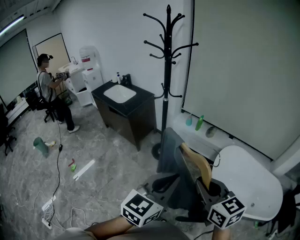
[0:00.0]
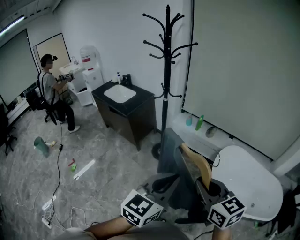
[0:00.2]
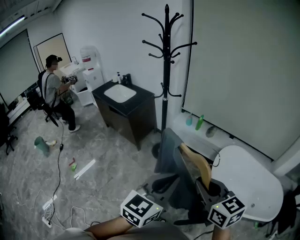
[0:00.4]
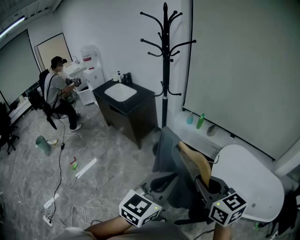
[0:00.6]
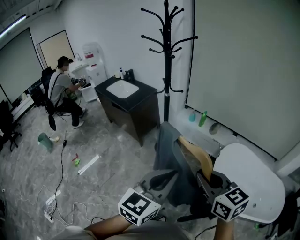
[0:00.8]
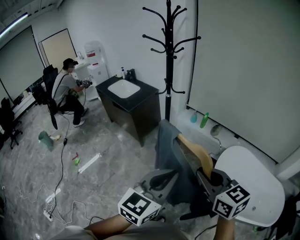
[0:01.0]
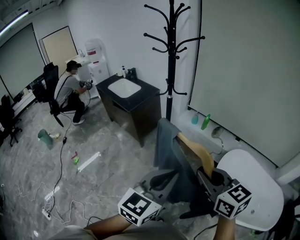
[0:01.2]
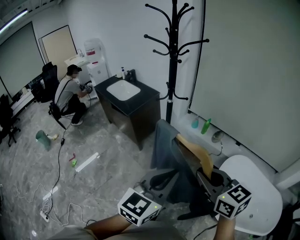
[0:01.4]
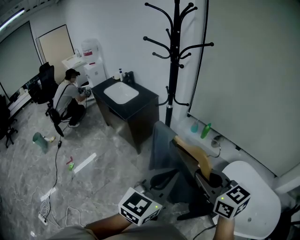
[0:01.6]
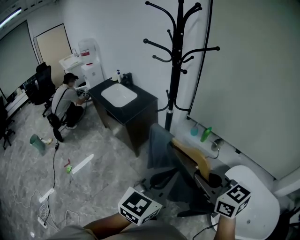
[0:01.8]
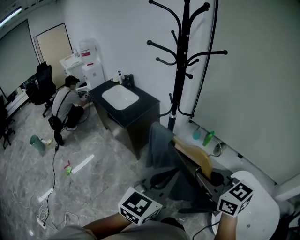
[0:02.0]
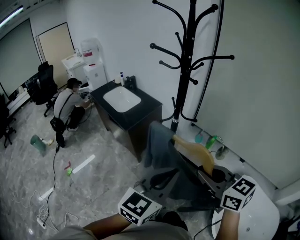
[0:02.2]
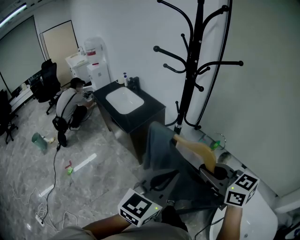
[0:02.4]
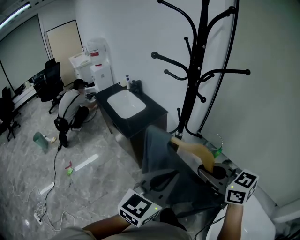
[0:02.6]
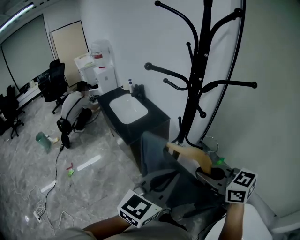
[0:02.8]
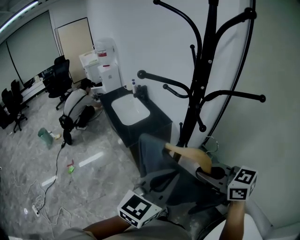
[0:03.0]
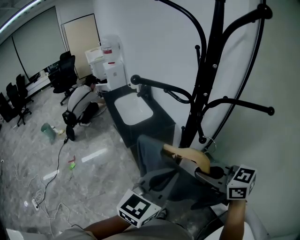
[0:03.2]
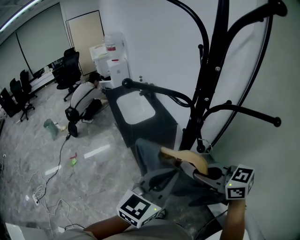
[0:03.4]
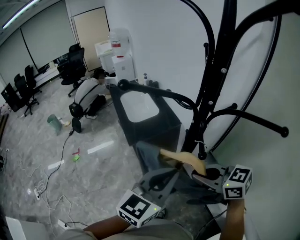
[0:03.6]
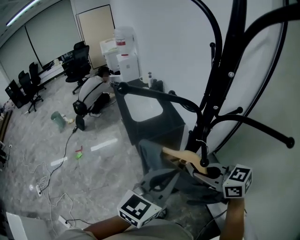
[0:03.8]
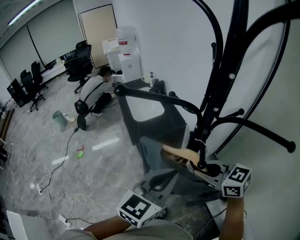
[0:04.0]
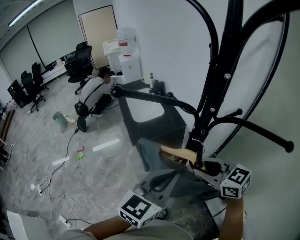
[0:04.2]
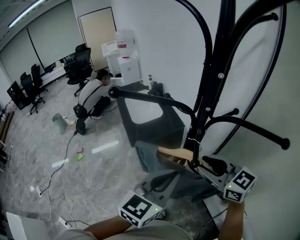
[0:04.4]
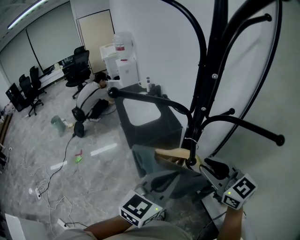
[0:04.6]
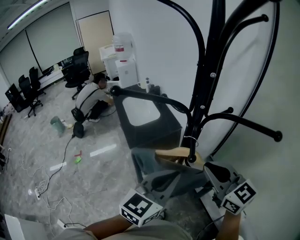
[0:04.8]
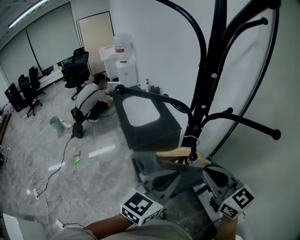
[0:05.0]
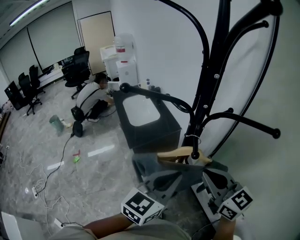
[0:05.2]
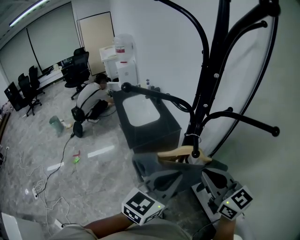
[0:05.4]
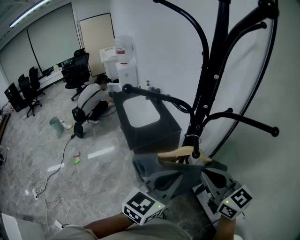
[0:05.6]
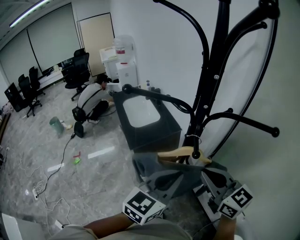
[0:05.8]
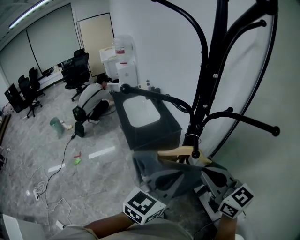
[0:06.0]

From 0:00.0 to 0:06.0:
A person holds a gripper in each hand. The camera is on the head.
From 0:00.0 to 0:01.6: Both grippers travel together forward, approximately 20 cm.
From 0:01.6 to 0:03.0: The two grippers go approximately 35 cm forward. The right gripper swivels roughly 30 degrees.
From 0:03.0 to 0:04.4: Both grippers move forward and to the right, approximately 15 cm.
From 0:04.4 to 0:06.0: The right gripper heads backward, covering approximately 5 cm, and closes its fingers.

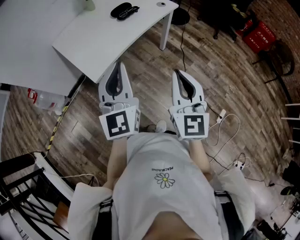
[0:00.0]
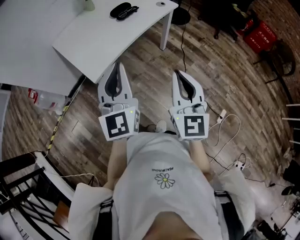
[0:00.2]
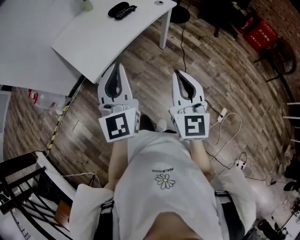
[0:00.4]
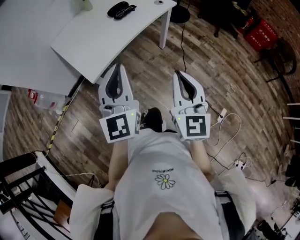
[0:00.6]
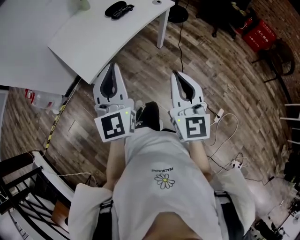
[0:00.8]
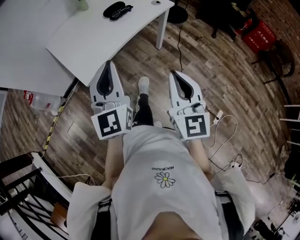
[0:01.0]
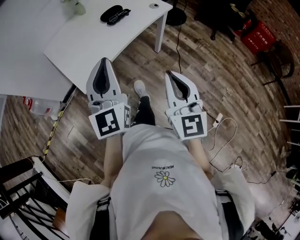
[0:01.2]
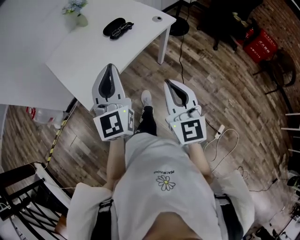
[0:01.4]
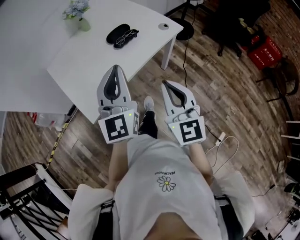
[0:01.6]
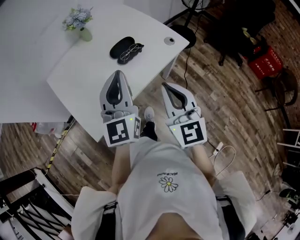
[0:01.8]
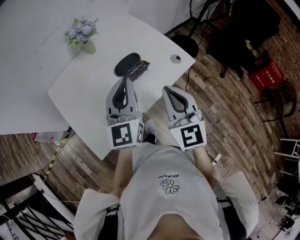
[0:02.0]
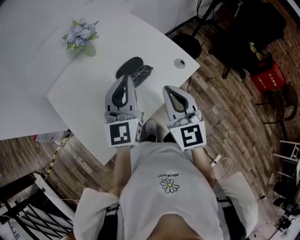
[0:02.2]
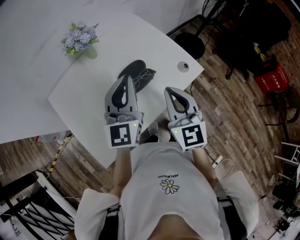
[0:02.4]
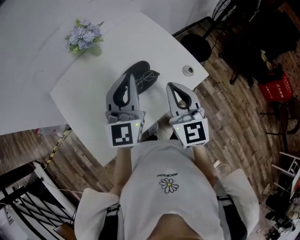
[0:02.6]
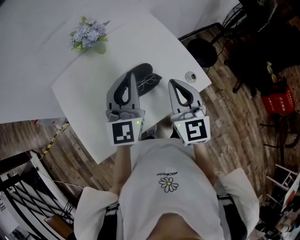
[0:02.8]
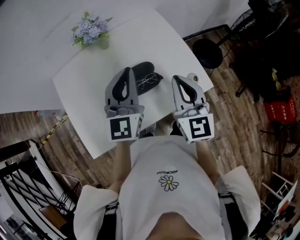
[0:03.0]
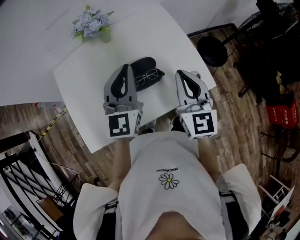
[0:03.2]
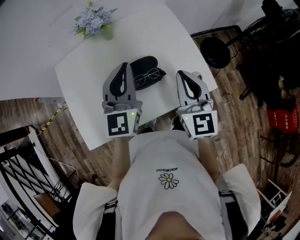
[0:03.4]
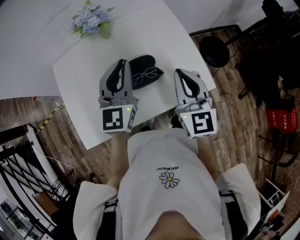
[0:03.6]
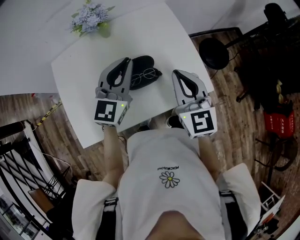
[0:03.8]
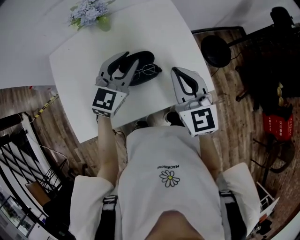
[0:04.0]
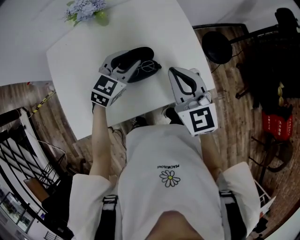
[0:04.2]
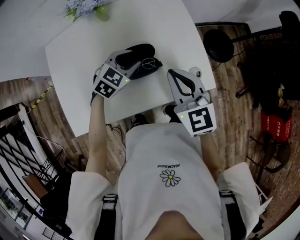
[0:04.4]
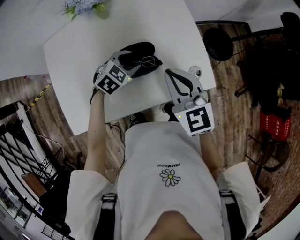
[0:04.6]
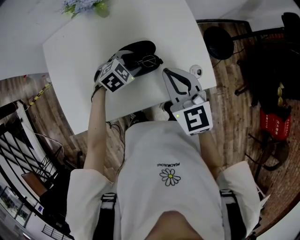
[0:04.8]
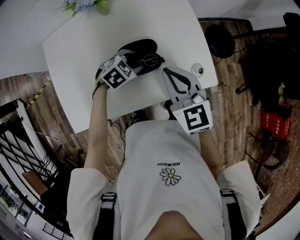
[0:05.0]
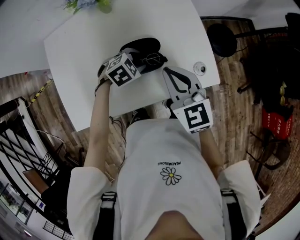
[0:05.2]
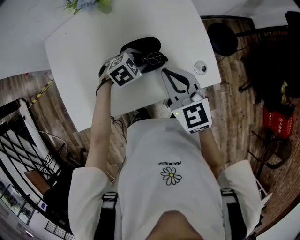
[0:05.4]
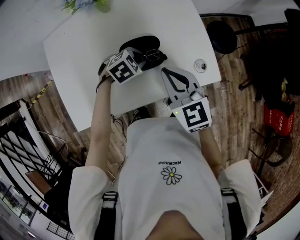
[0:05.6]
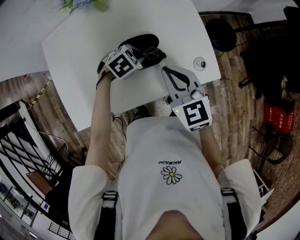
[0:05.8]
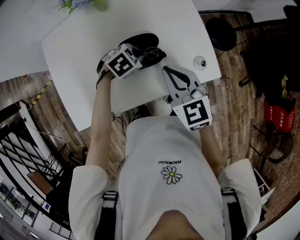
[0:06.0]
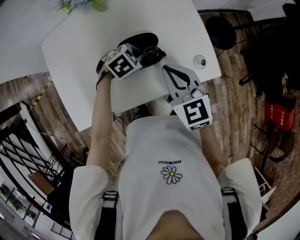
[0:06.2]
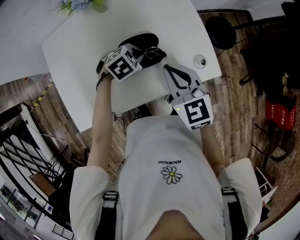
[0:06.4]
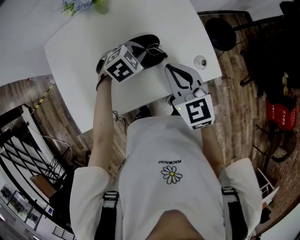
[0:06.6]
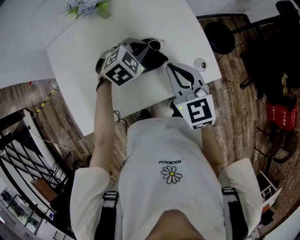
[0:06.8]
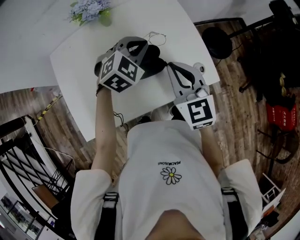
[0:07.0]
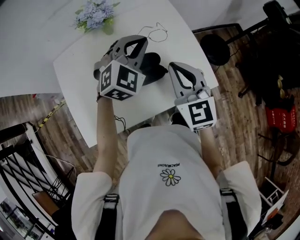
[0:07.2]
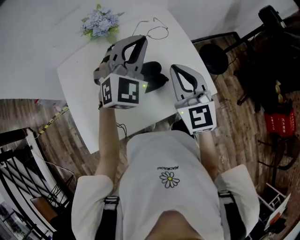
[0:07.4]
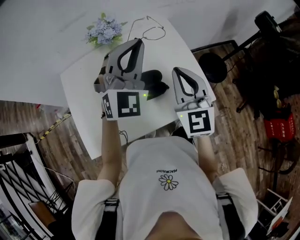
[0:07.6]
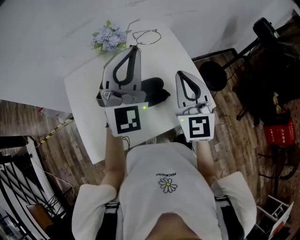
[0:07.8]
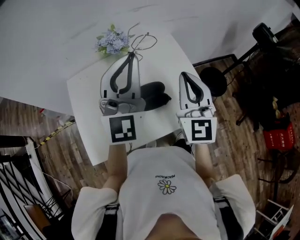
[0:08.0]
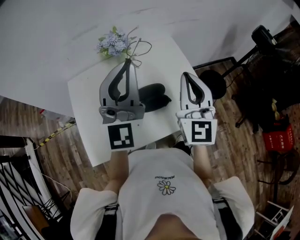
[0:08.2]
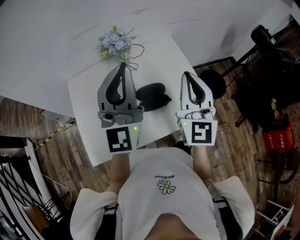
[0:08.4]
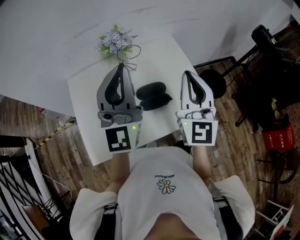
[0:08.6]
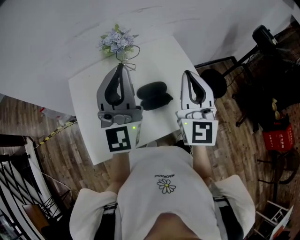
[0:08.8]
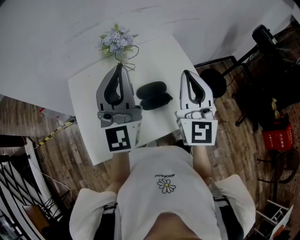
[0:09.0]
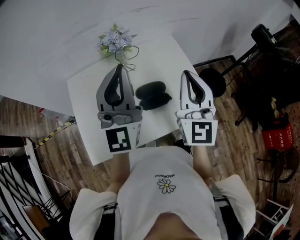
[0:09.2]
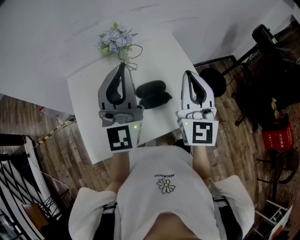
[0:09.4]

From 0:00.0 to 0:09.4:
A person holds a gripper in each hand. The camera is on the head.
From 0:00.0 to 0:01.6: Both grippers move forward, some 20 cm.
From 0:01.6 to 0:03.2: The two grippers go roughly 35 cm forward.
From 0:03.2 to 0:04.8: The left gripper travels downward by roughly 25 cm, tips its fingers downward by some 60 degrees, and opens its fingers; the right gripper travels downward by approximately 5 cm, and changes its angle by about 30 degrees.
From 0:04.8 to 0:06.2: The left gripper closes up.
From 0:06.2 to 0:07.8: The left gripper goes approximately 40 cm upward, and tips its fingers upward by about 70 degrees; the right gripper is displaced upward by some 15 cm, and changes its angle by about 40 degrees.
From 0:07.8 to 0:09.4: The left gripper heads to the left and backward, covering roughly 10 cm, and turns by about 30 degrees.

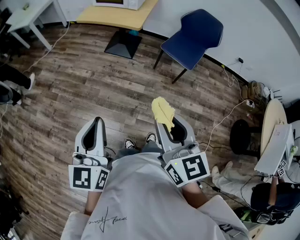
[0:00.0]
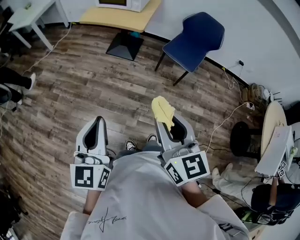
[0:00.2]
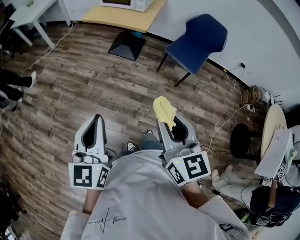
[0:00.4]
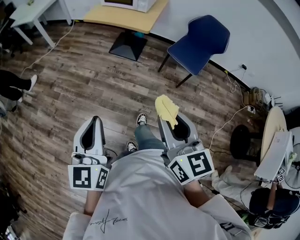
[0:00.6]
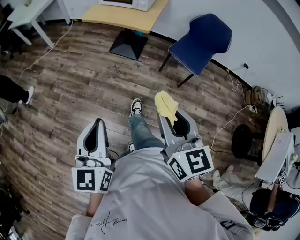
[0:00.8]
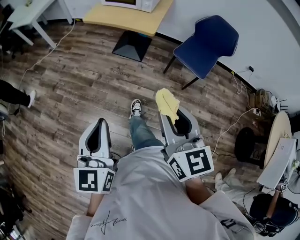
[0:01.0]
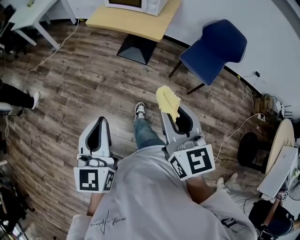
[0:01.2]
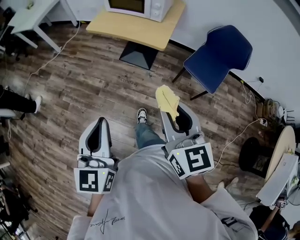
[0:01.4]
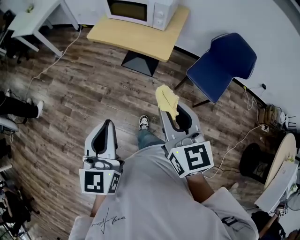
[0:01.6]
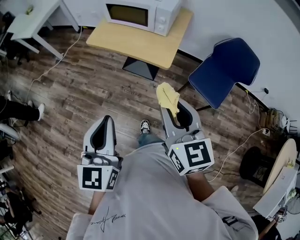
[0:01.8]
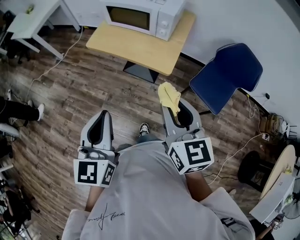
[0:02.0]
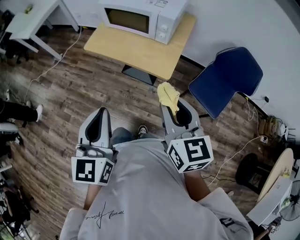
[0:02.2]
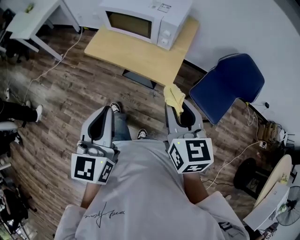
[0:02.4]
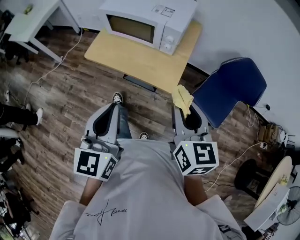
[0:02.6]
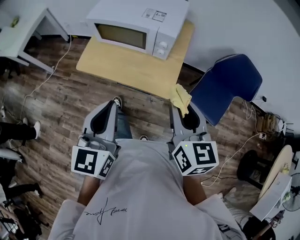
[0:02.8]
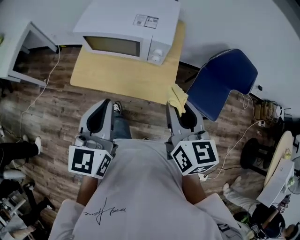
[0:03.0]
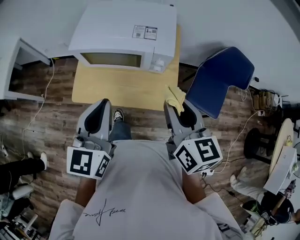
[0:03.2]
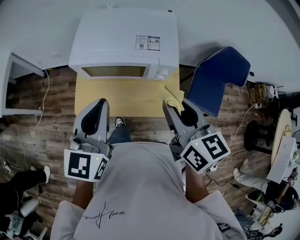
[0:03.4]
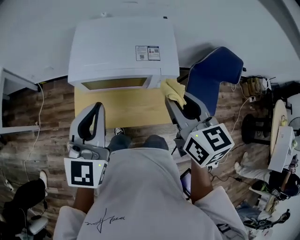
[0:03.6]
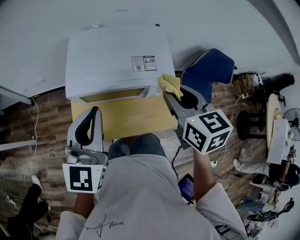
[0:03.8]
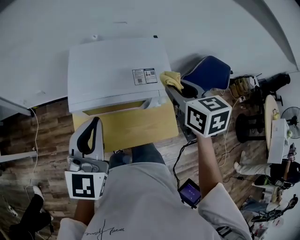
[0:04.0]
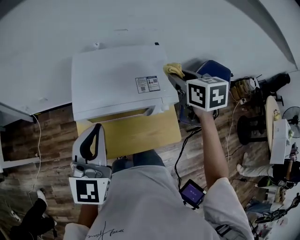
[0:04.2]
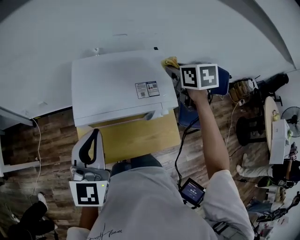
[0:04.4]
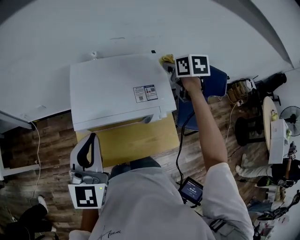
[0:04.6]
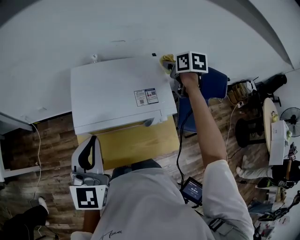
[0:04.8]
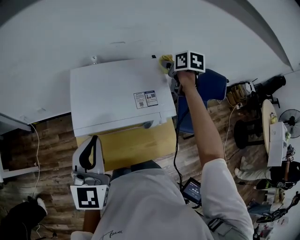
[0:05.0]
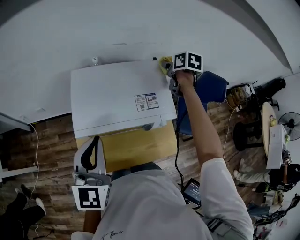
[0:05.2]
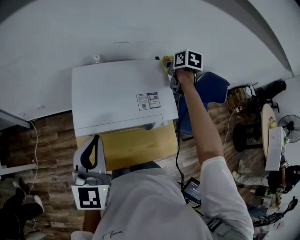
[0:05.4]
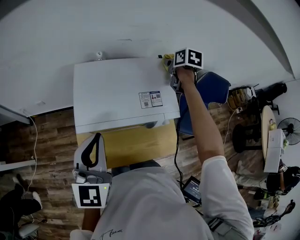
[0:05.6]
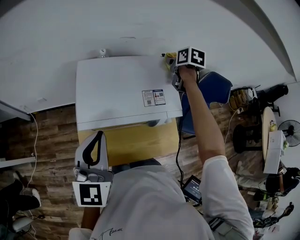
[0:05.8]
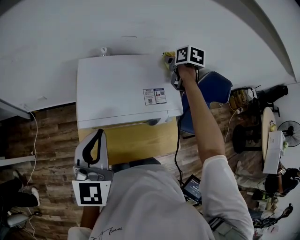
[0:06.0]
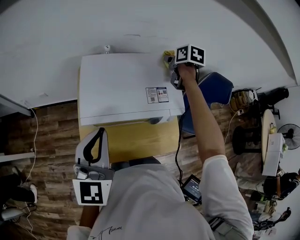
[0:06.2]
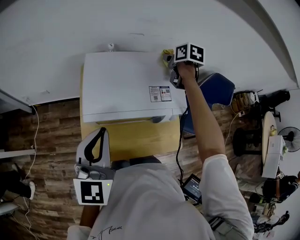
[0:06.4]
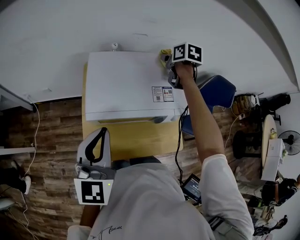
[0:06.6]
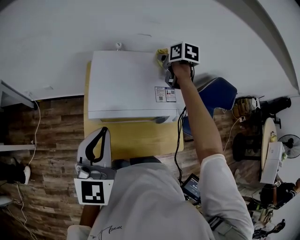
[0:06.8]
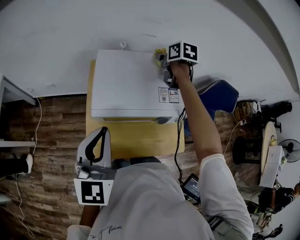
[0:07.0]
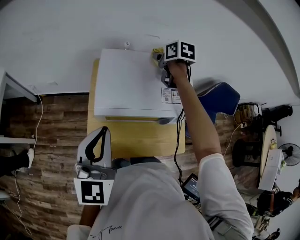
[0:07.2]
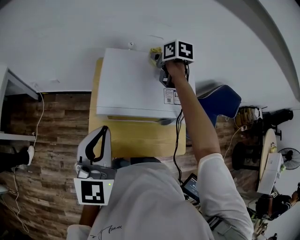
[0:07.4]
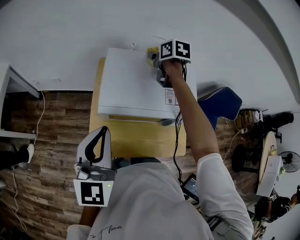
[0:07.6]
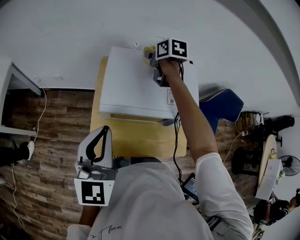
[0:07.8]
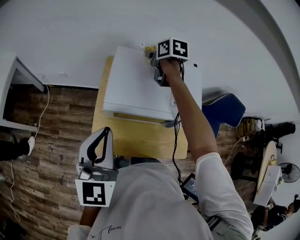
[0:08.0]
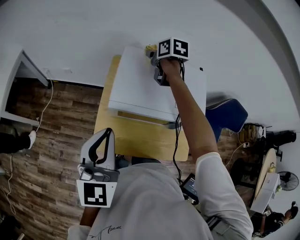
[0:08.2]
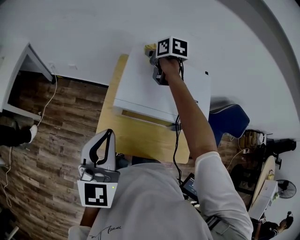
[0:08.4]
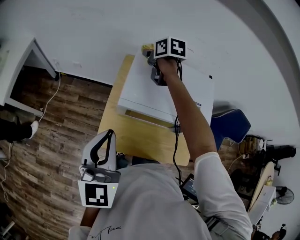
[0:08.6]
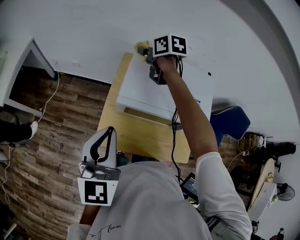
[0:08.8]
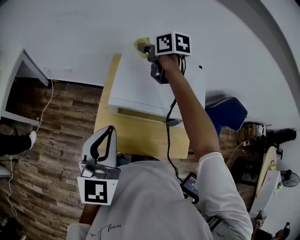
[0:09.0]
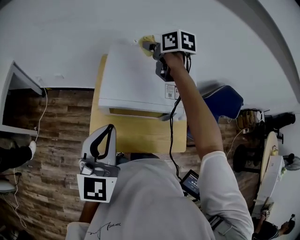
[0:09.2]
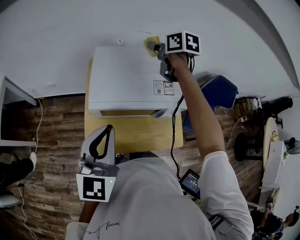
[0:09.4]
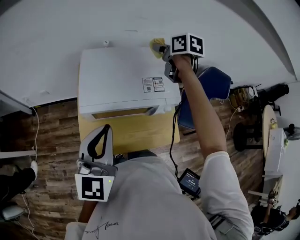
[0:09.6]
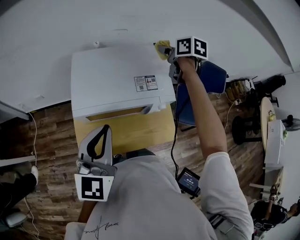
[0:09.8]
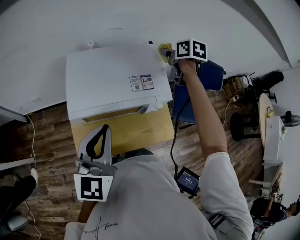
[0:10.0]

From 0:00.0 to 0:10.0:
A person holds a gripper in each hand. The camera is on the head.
From 0:00.0 to 0:01.4: Both grippers travel together forward, some 30 cm.
From 0:01.4 to 0:02.8: The grippers both shift forward by approximately 40 cm.
From 0:02.8 to 0:04.2: The right gripper shifts roughly 40 cm forward, and rotates some 30 degrees; the left gripper shifts some 40 cm forward and to the left, and rotates approximately 30 degrees.
From 0:04.2 to 0:05.8: The right gripper moves forward and downward, approximately 20 cm, and swivels approximately 20 degrees.
From 0:05.8 to 0:07.2: The left gripper shifts by approximately 5 cm. Meanwhile the right gripper shifts some 15 cm to the left.
From 0:07.2 to 0:08.6: The left gripper moves to the left, about 5 cm. The right gripper moves to the left, some 20 cm.
From 0:08.6 to 0:10.0: The left gripper ends up roughly 15 cm from where it was, and changes its angle by some 30 degrees; the right gripper ends up some 40 cm from where it was, and changes its angle by roughly 30 degrees.
